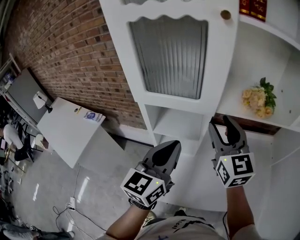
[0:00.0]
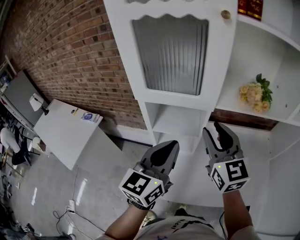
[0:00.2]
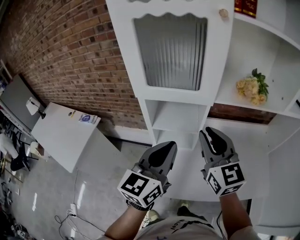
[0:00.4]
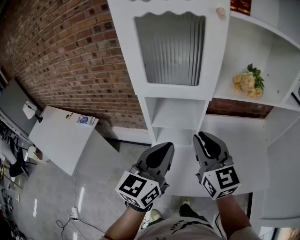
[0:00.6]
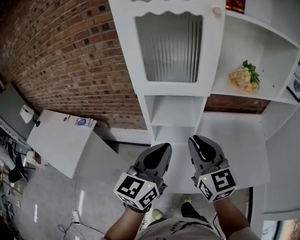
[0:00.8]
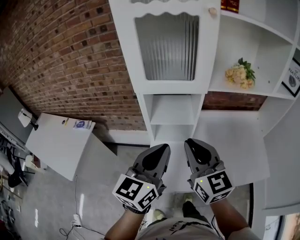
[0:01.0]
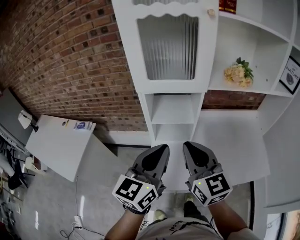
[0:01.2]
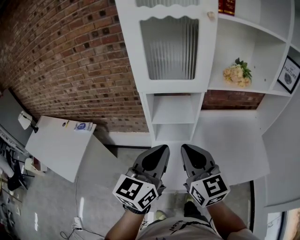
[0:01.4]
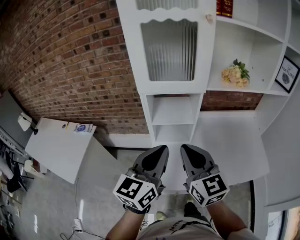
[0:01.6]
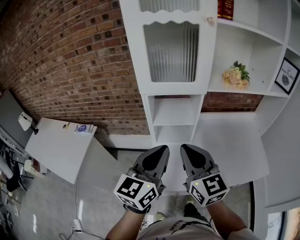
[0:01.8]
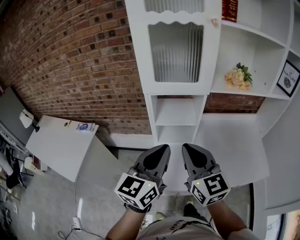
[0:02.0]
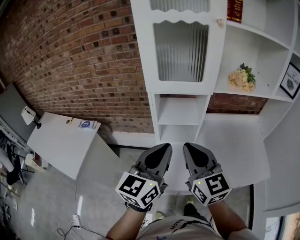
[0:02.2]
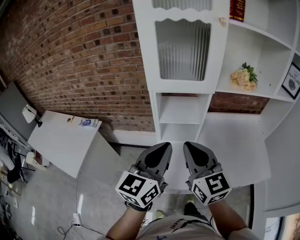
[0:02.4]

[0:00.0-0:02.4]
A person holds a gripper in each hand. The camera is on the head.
0.0 to 1.2 s: The right gripper travels backward and to the left by roughly 20 cm, and closes up, while the left gripper goes about 15 cm backward and to the left.
1.2 to 2.4 s: The grippers stay close to where they were, moving slightly.

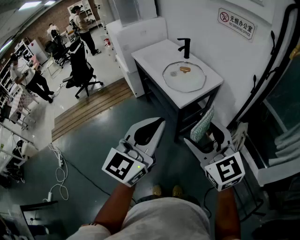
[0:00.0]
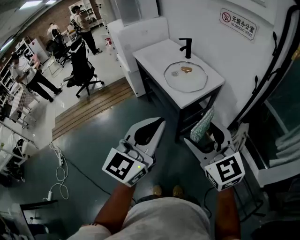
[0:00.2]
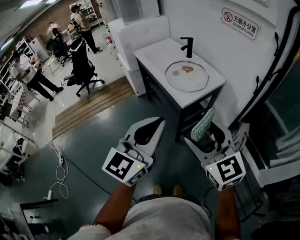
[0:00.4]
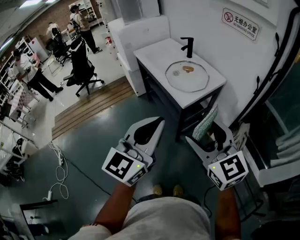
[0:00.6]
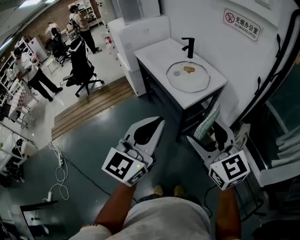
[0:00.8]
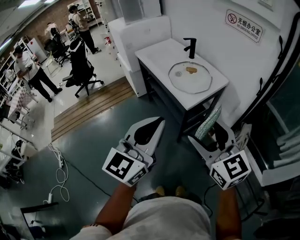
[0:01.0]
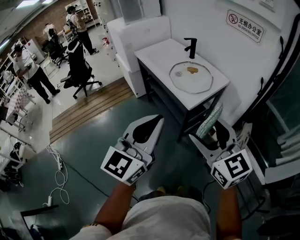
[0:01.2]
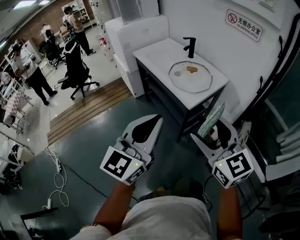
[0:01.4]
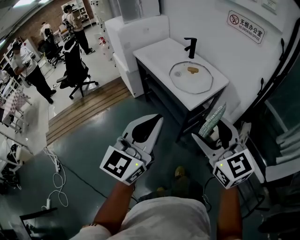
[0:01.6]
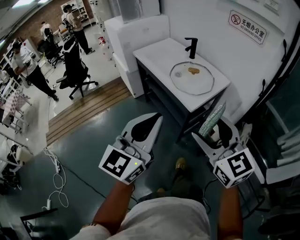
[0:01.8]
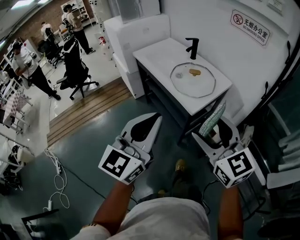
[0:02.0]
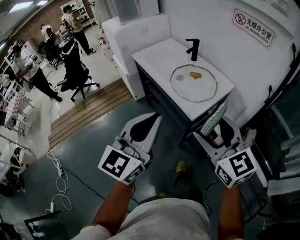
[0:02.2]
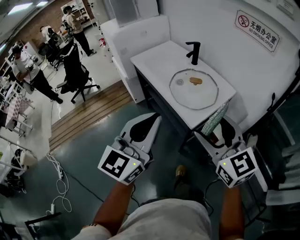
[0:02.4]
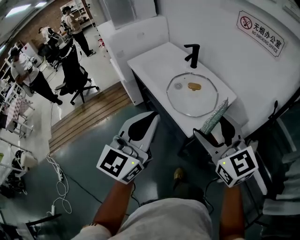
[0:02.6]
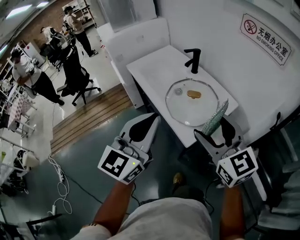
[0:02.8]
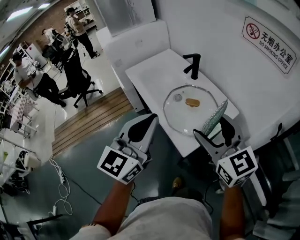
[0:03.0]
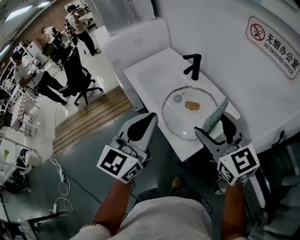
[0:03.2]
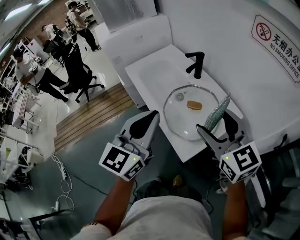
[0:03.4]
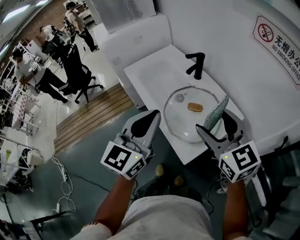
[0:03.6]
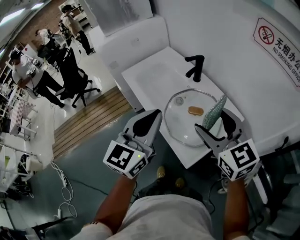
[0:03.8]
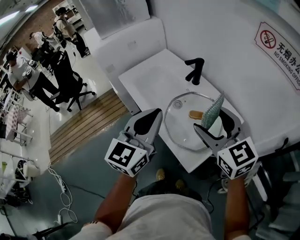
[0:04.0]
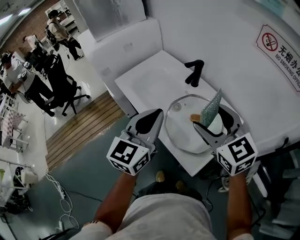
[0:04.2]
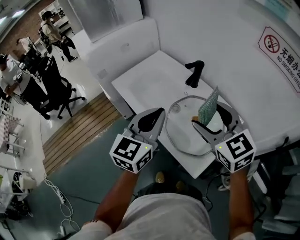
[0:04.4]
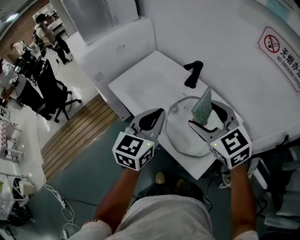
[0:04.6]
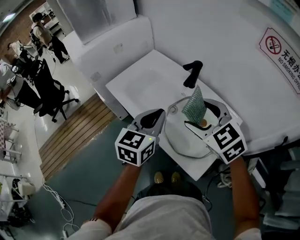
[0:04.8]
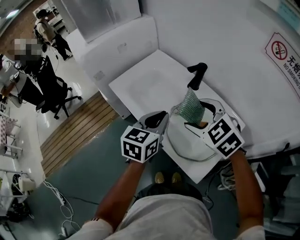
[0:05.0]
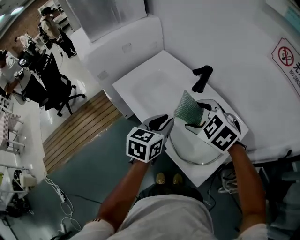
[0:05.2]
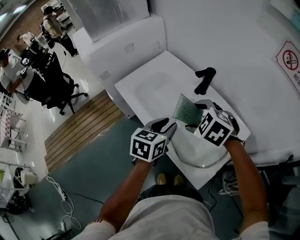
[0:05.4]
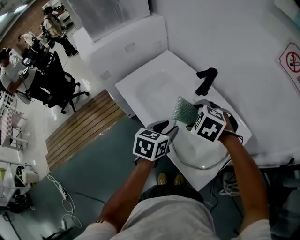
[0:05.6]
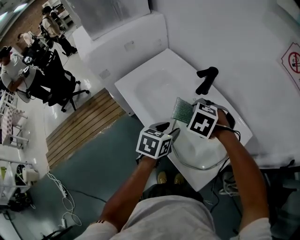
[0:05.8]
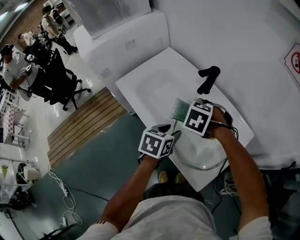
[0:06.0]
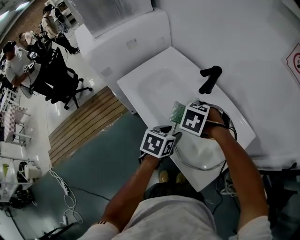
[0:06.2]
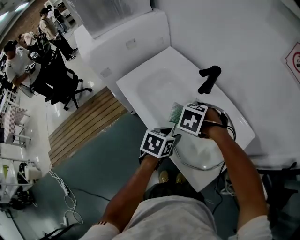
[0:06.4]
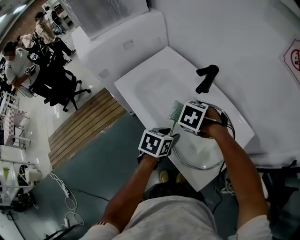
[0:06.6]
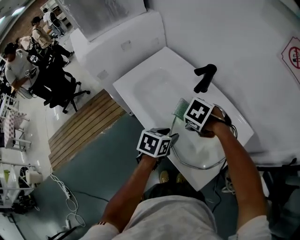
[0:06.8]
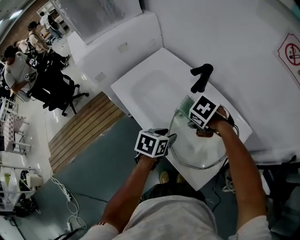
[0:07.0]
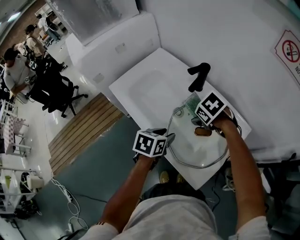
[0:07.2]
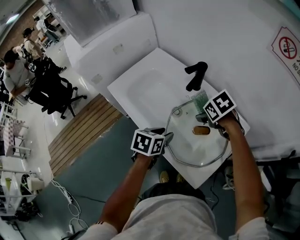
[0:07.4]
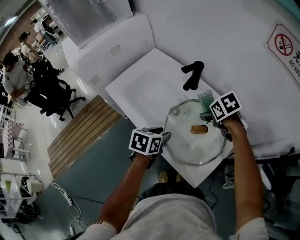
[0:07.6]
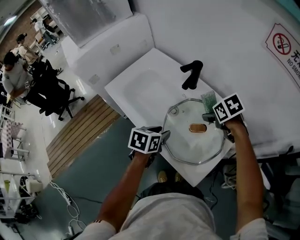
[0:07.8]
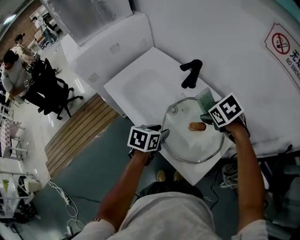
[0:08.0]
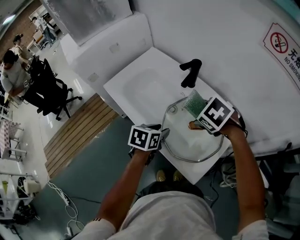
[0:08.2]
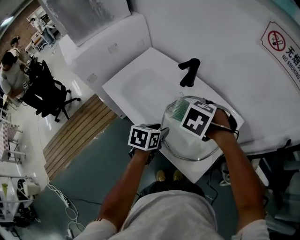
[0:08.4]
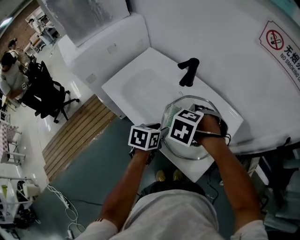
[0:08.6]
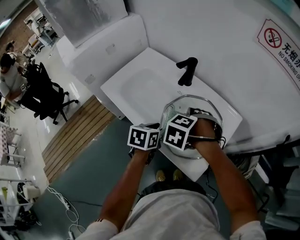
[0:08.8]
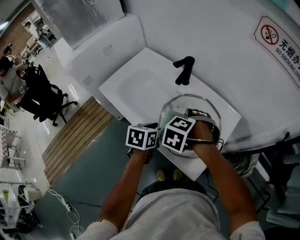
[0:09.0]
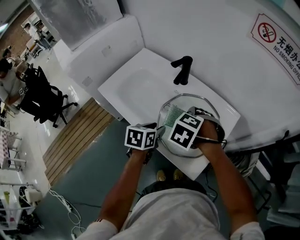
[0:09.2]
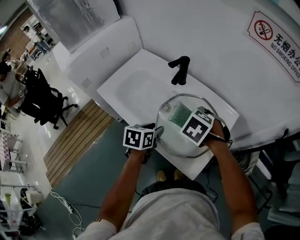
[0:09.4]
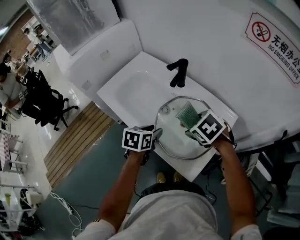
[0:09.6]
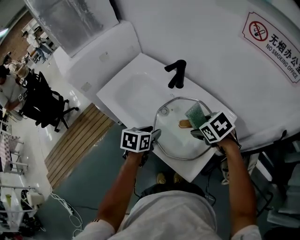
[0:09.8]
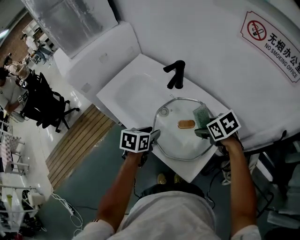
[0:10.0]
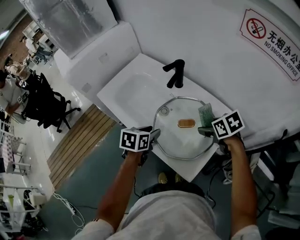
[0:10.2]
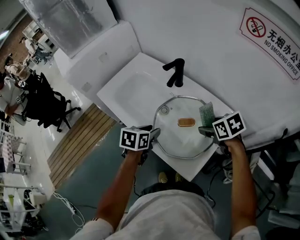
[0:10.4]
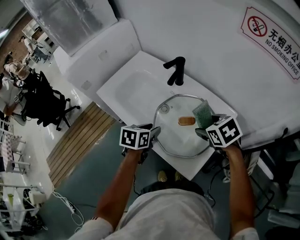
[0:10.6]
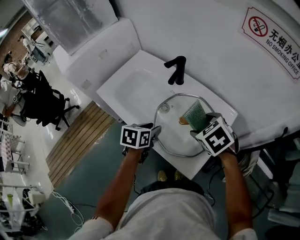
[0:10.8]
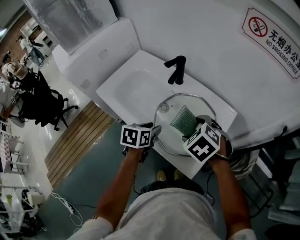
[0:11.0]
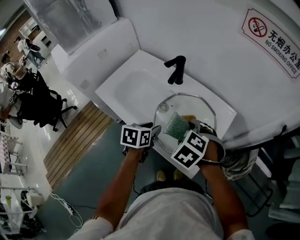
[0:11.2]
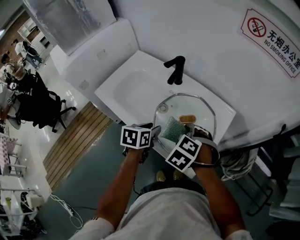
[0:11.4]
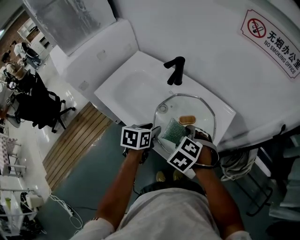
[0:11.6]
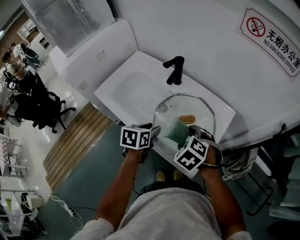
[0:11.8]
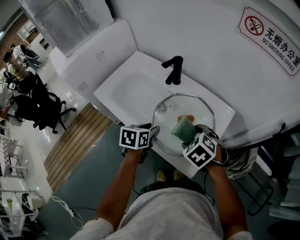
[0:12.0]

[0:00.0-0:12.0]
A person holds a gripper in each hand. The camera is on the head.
0.0 to 1.6 s: The right gripper heads to the left, covering some 5 cm; the left gripper travels to the left by about 10 cm.
1.6 to 3.0 s: The two grippers go approximately 30 cm forward.
3.0 to 4.4 s: The two grippers go roughly 15 cm forward.
4.4 to 6.0 s: Both grippers travel together downward, some 20 cm. The right gripper points its fingers roughly 60 degrees further downward. Meanwhile the left gripper tilts its fingers about 40 degrees downward, and opens up.
6.0 to 7.6 s: The right gripper moves about 15 cm, and twists approximately 50 degrees clockwise, seen from behind.
7.6 to 9.0 s: The right gripper changes place by about 15 cm, and rolls counterclockwise, seen from behind, by approximately 50 degrees.
9.0 to 10.4 s: The right gripper moves about 15 cm, and rolls clockwise, seen from behind, by approximately 50 degrees.
10.4 to 12.0 s: The right gripper shifts some 10 cm backward and to the left, and changes its angle by approximately 30 degrees.

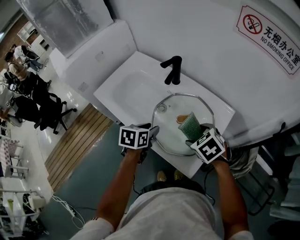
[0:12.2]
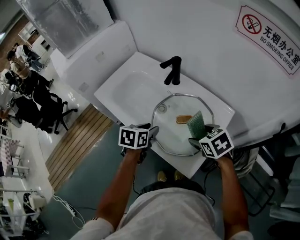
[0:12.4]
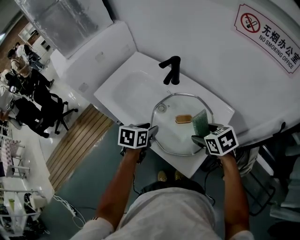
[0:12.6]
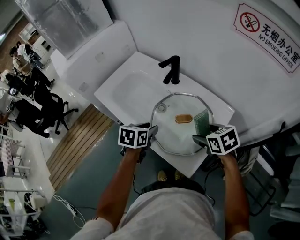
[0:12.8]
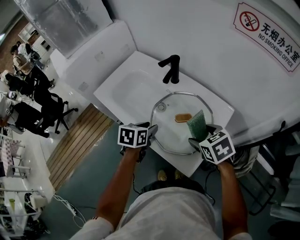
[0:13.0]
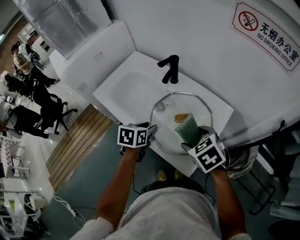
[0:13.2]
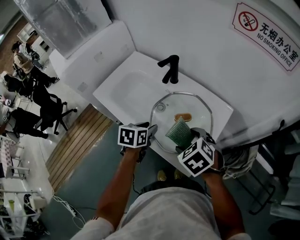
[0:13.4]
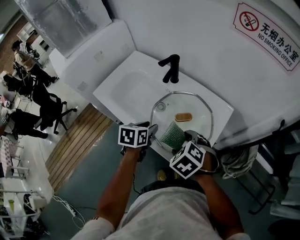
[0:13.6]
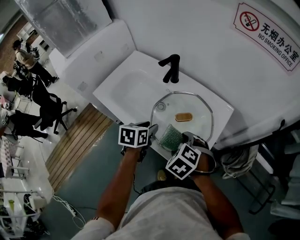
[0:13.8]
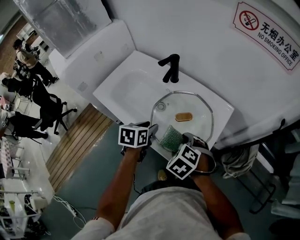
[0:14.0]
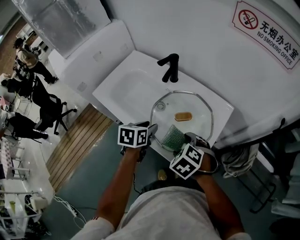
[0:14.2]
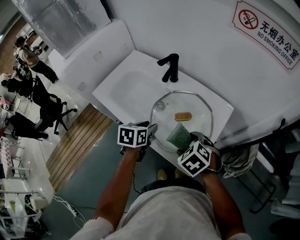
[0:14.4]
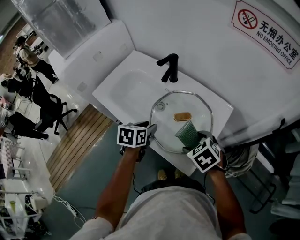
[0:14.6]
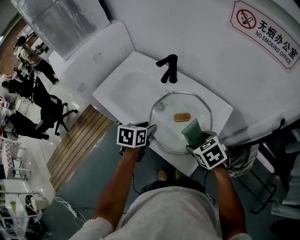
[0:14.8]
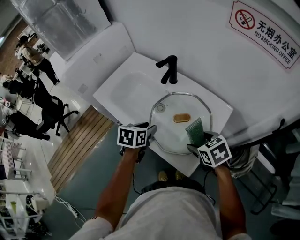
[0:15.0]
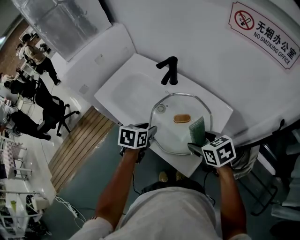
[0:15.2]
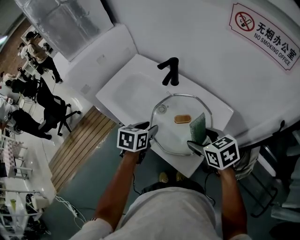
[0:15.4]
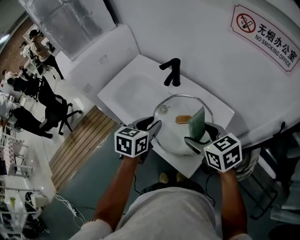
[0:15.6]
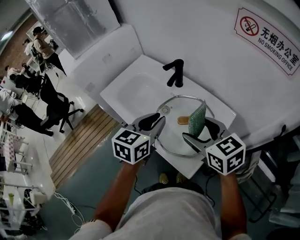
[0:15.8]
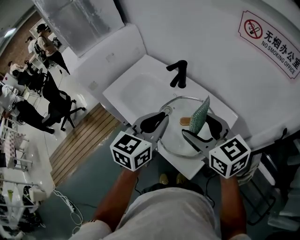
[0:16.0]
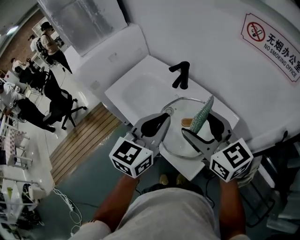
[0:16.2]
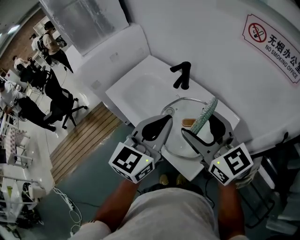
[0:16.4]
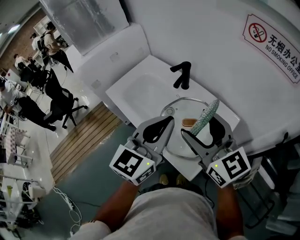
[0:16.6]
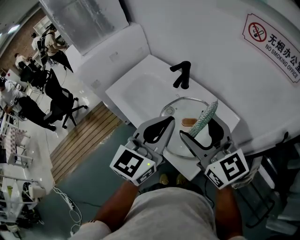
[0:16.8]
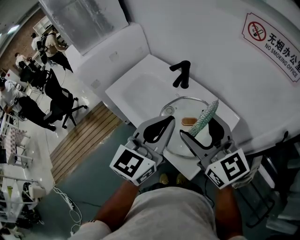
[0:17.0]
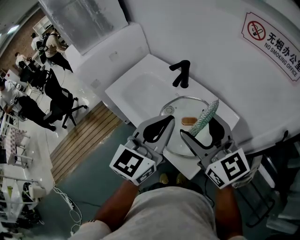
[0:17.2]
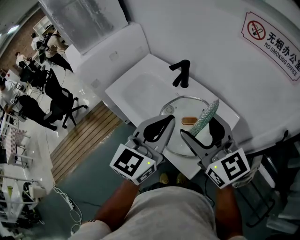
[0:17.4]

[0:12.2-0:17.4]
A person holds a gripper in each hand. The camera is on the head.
12.2 to 14.0 s: The right gripper goes roughly 10 cm to the left and backward.
14.0 to 15.6 s: The left gripper is displaced upward by roughly 10 cm, while the right gripper travels upward and to the right by some 10 cm, and rotates roughly 40 degrees.
15.6 to 17.4 s: Both grippers move upward, some 15 cm. The left gripper angles its fingers upward, by roughly 30 degrees, and closes its fingers. The right gripper tips its fingers upward by roughly 30 degrees.

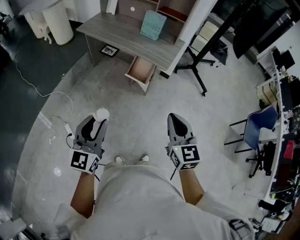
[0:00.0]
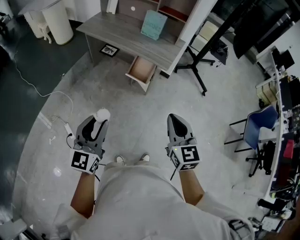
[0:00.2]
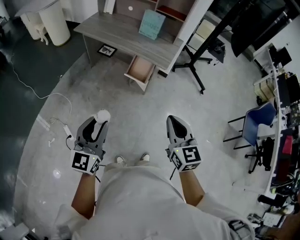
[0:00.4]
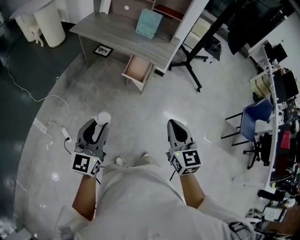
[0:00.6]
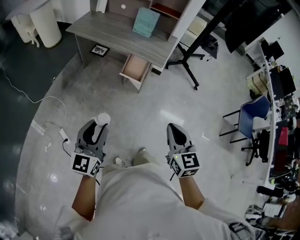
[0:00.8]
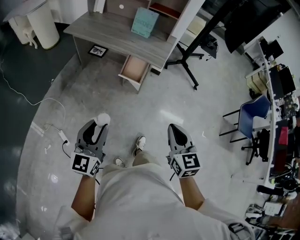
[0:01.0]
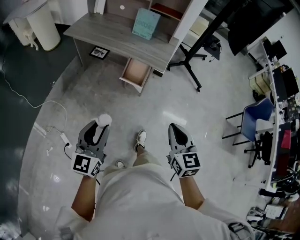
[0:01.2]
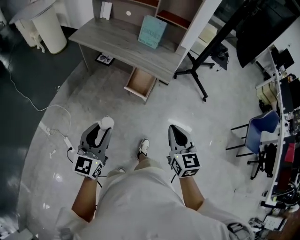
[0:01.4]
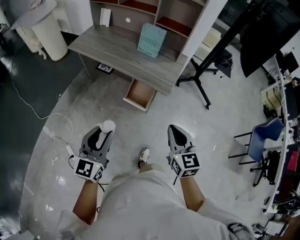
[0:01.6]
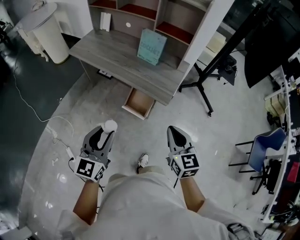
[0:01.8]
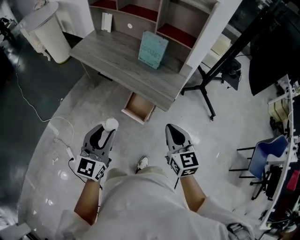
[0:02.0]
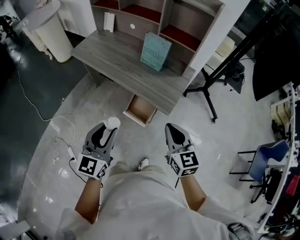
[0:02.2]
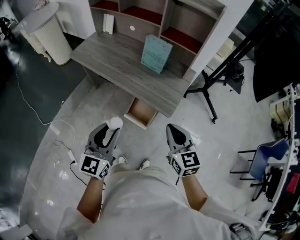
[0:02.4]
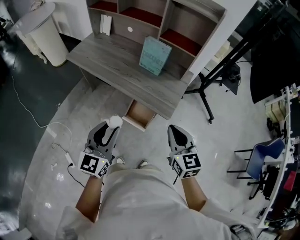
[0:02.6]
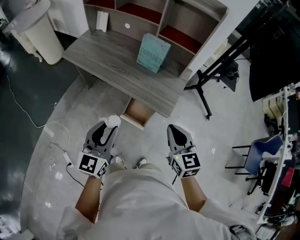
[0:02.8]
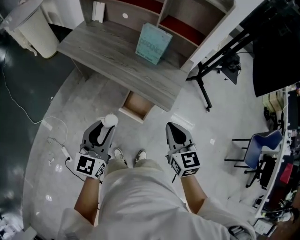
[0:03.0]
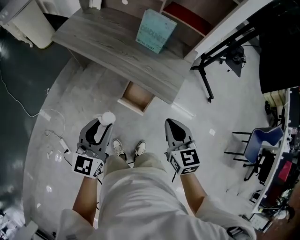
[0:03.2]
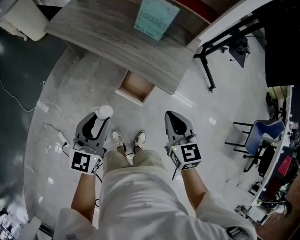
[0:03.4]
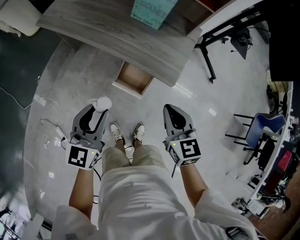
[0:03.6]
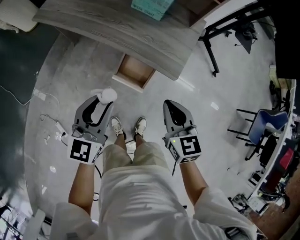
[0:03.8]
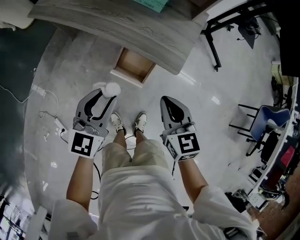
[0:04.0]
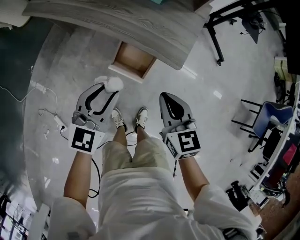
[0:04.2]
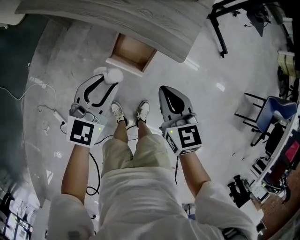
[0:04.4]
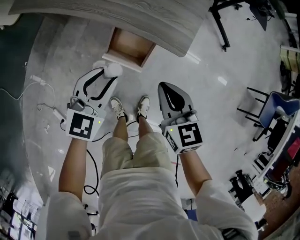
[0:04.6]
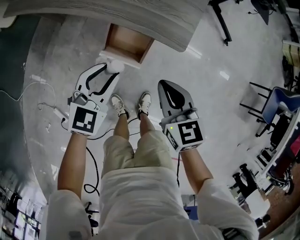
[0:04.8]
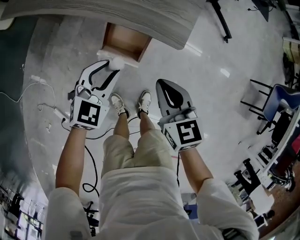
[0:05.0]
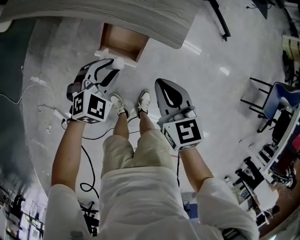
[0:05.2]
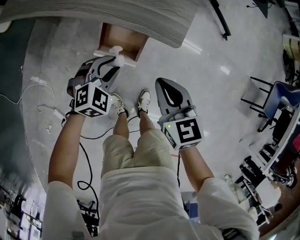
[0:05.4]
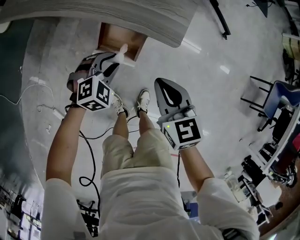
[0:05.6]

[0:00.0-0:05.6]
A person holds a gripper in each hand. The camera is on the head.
0.0 to 1.4 s: The right gripper goes about 10 cm forward and downward, while the left gripper travels forward by roughly 10 cm.
1.4 to 2.8 s: Both grippers move forward, approximately 25 cm.
2.8 to 4.2 s: Both grippers move downward, approximately 20 cm. The left gripper swivels about 20 degrees.
4.2 to 5.6 s: The right gripper shifts some 10 cm downward, while the left gripper shifts about 20 cm downward, and points its fingers about 30 degrees further downward.
